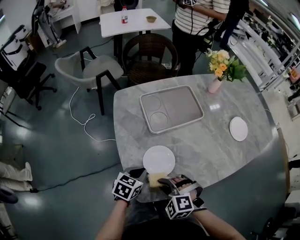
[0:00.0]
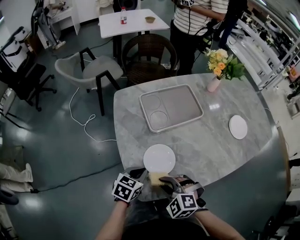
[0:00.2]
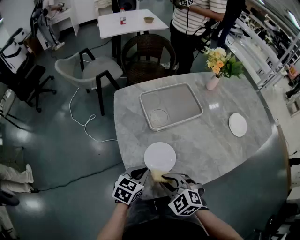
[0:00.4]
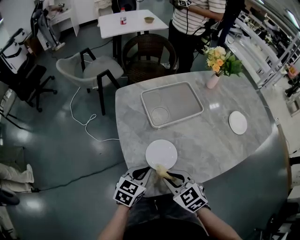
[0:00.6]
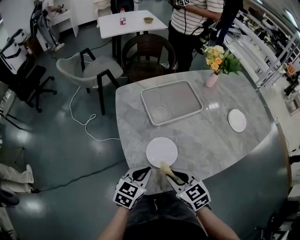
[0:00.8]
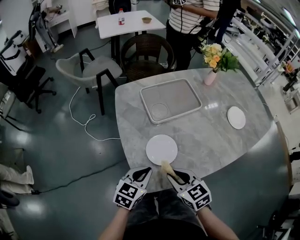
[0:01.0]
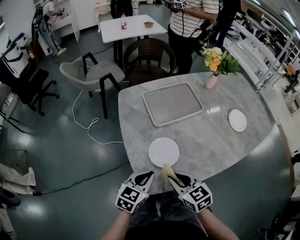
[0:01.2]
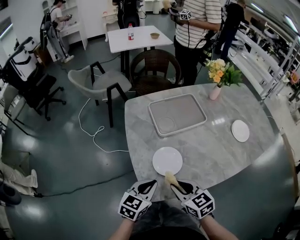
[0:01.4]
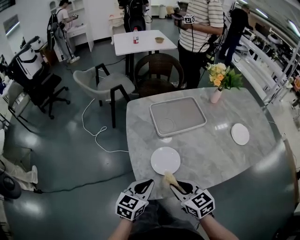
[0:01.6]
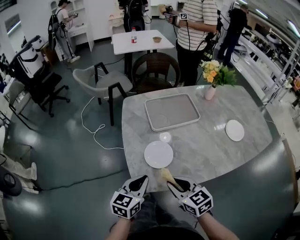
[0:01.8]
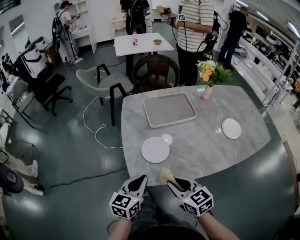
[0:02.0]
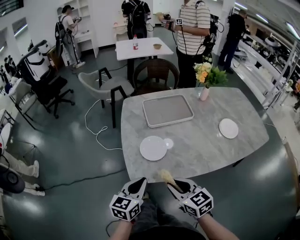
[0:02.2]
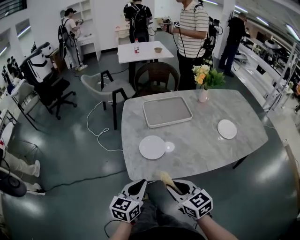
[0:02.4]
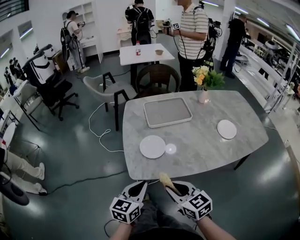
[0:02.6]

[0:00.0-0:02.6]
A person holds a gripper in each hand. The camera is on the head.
0:00.0 to 0:01.2: The left gripper heads upward and backward, covering some 10 cm, while the right gripper changes place by roughly 5 cm, and rotates around the line of its fingers by about 60 degrees, clockwise from behind.
0:01.2 to 0:02.6: The right gripper goes roughly 15 cm backward, to the right and upward; the left gripper heads backward and upward, covering some 15 cm, and rotates roughly 20 degrees.

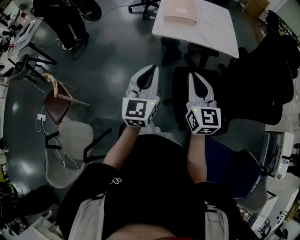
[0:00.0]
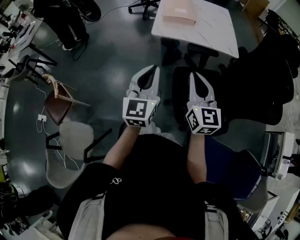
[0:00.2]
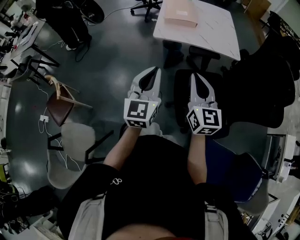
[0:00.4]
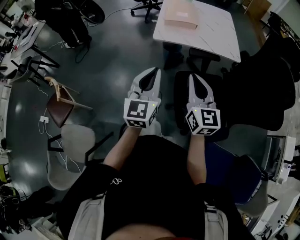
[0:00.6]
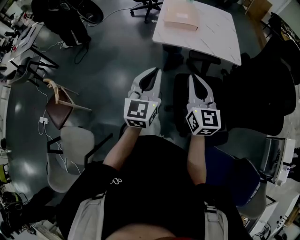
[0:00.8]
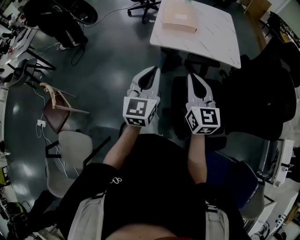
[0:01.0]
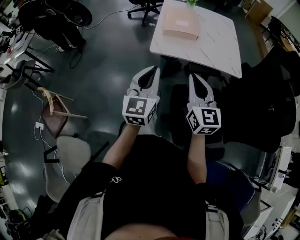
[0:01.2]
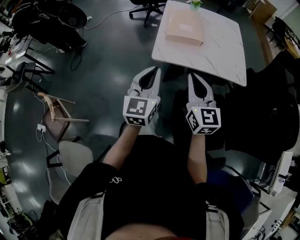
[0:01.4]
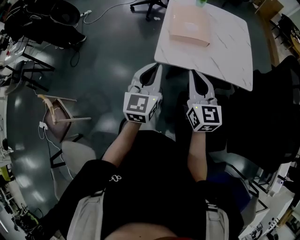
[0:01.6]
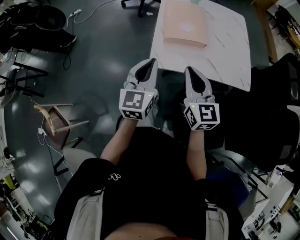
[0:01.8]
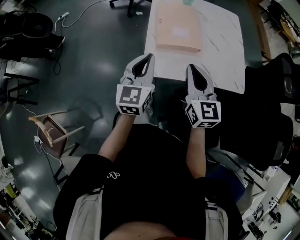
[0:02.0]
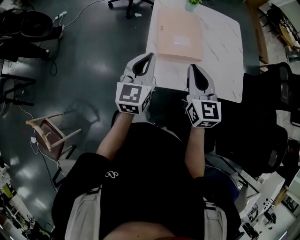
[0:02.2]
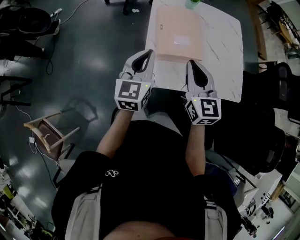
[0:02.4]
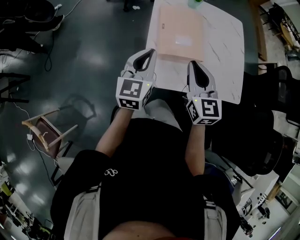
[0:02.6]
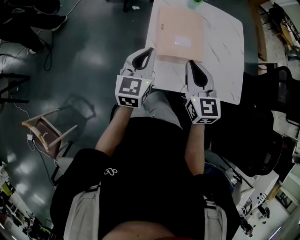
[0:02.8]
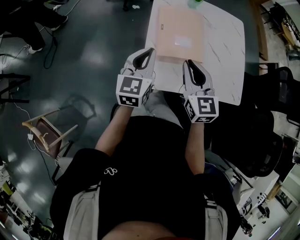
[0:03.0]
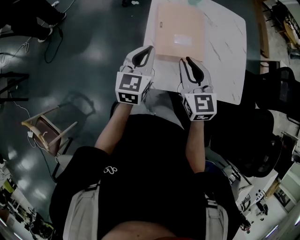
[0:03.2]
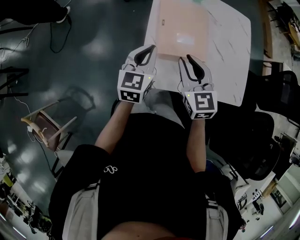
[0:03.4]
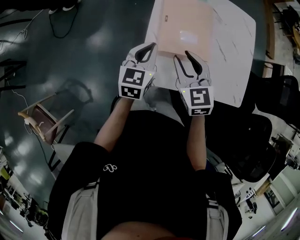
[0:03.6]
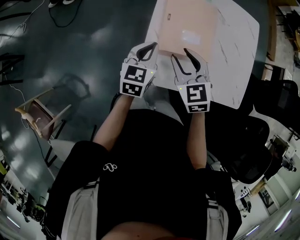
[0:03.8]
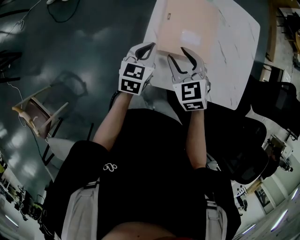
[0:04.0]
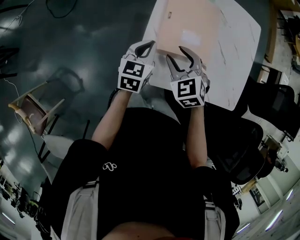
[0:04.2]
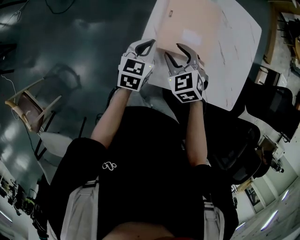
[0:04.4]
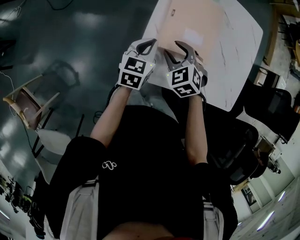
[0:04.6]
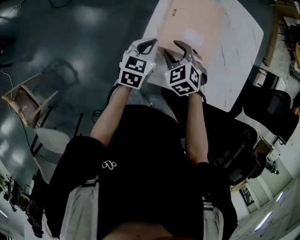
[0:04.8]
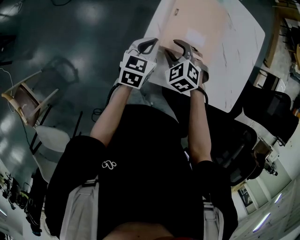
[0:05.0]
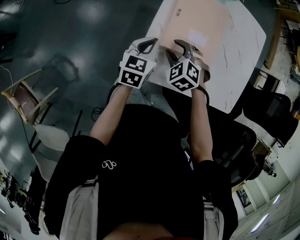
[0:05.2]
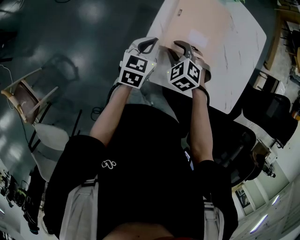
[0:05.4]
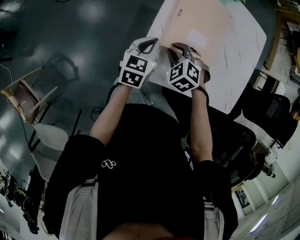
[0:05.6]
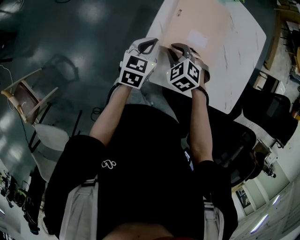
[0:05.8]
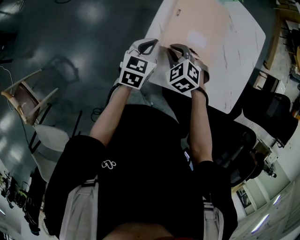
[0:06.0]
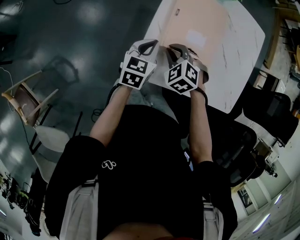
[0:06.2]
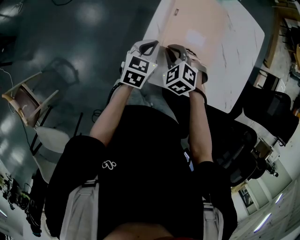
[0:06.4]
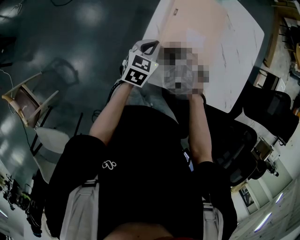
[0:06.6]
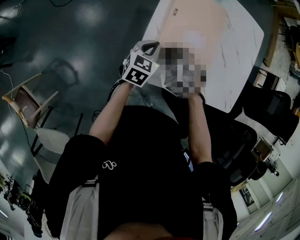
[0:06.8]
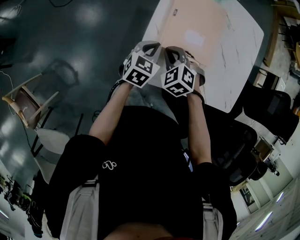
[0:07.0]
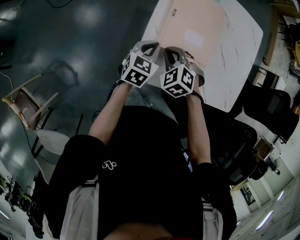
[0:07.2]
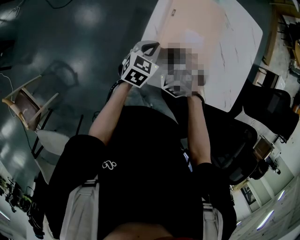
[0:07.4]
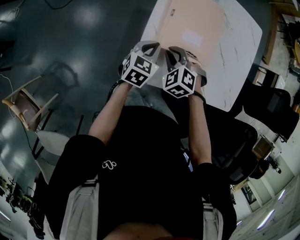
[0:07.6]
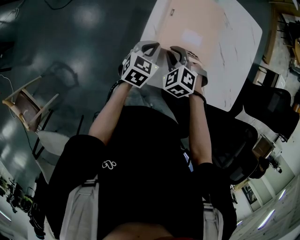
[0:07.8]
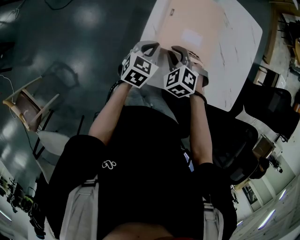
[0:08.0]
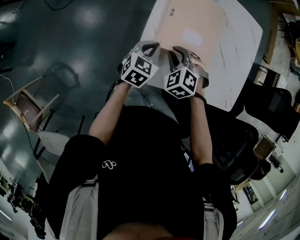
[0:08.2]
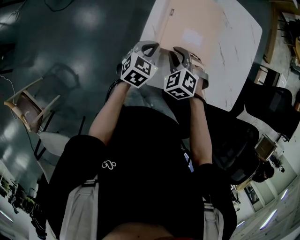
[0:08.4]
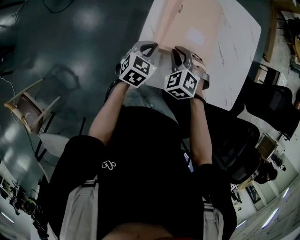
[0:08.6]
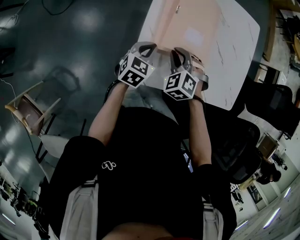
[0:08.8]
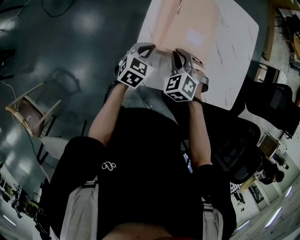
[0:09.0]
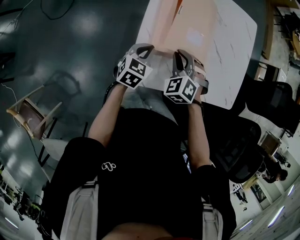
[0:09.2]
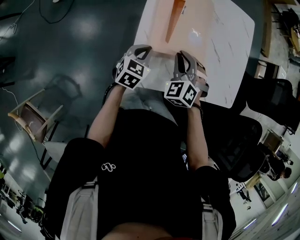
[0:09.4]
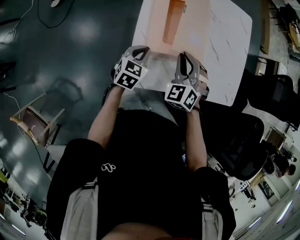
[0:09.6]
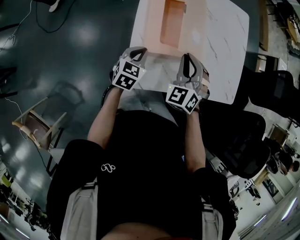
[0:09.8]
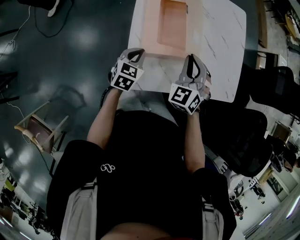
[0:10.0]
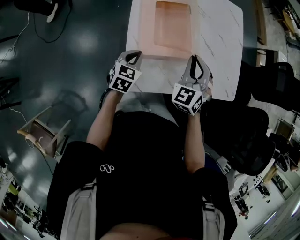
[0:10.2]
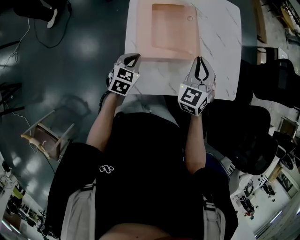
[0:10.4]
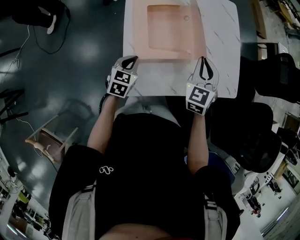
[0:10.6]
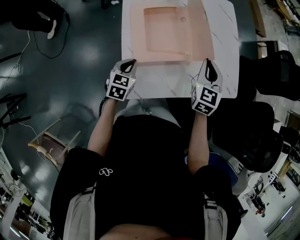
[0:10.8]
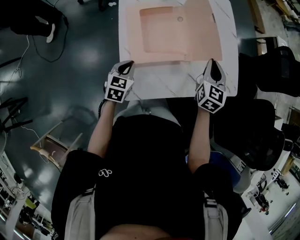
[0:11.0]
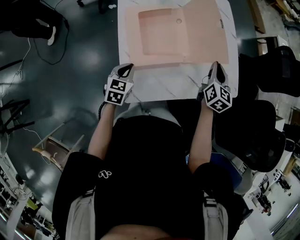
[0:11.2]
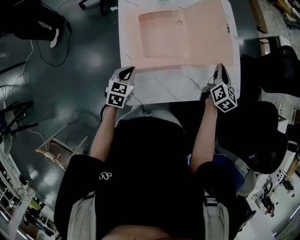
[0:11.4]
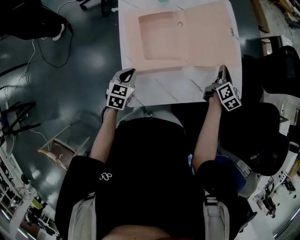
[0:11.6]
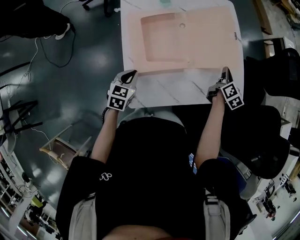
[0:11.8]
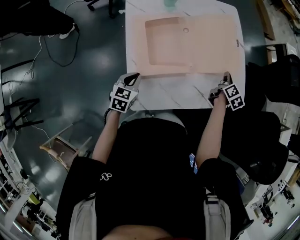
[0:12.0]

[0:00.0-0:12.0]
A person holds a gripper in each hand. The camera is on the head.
0:00.0 to 0:01.6: The grippers both shift forward by roughly 30 cm.
0:01.6 to 0:03.0: Both grippers travel together forward, about 25 cm.
0:03.0 to 0:04.4: Both grippers move downward, roughly 15 cm. The right gripper tilts its fingers roughly 30 degrees downward, and opens.
0:04.4 to 0:06.0: The right gripper moves downward, some 5 cm, turns by some 20 degrees, and closes its fingers.
0:06.0 to 0:09.0: The grippers make only small movements.
0:09.0 to 0:10.4: The right gripper goes roughly 15 cm to the right and upward, and rotates some 50 degrees.
0:10.4 to 0:12.0: The right gripper heads to the right, downward and forward, covering about 30 cm, and twists roughly 80 degrees clockwise, seen from behind.

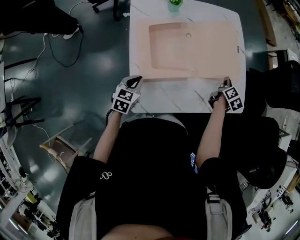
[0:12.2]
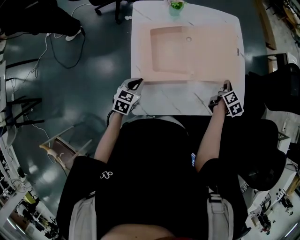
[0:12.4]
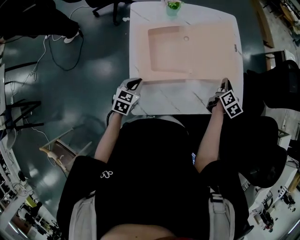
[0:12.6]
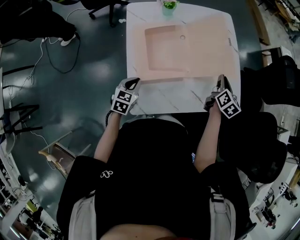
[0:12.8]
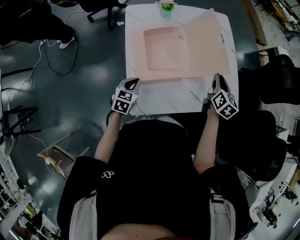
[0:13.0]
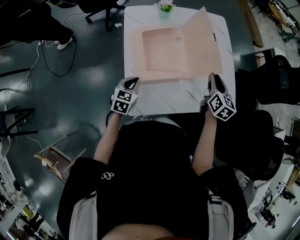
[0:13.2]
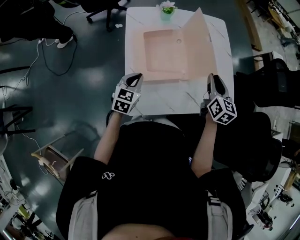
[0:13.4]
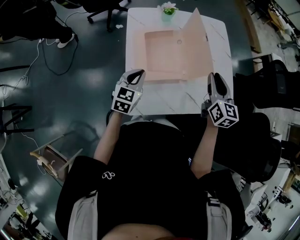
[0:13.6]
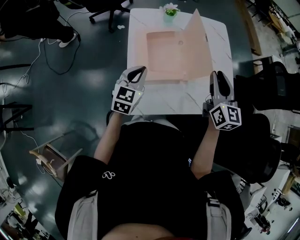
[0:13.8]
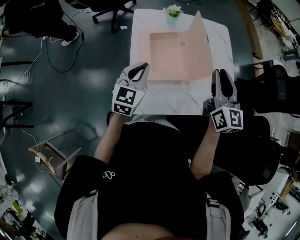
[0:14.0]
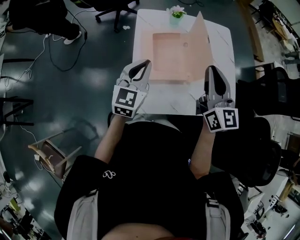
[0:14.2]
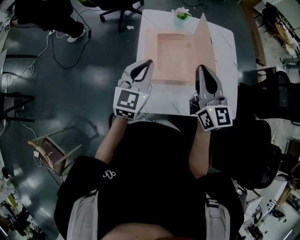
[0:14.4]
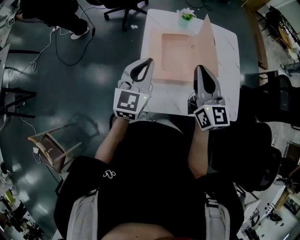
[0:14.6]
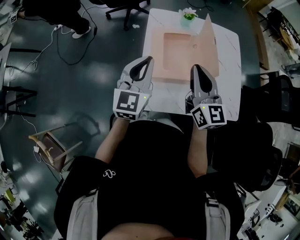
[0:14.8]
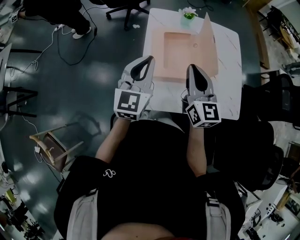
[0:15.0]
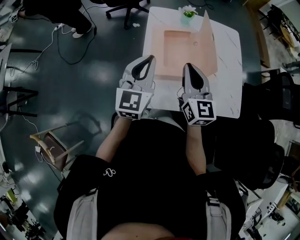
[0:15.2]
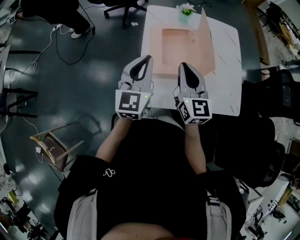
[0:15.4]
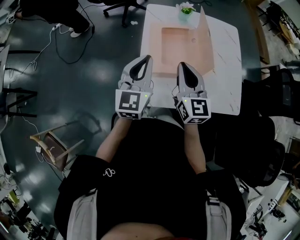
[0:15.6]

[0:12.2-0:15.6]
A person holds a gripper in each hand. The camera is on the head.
0:12.2 to 0:13.8: The right gripper shifts approximately 30 cm upward and to the left, and turns by roughly 50 degrees. The left gripper travels upward by approximately 15 cm, and changes its angle by approximately 20 degrees.
0:13.8 to 0:15.6: The right gripper moves to the left, about 20 cm, and closes its fingers. The left gripper is displaced upward by about 10 cm, and rotates about 20 degrees.

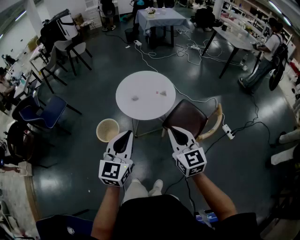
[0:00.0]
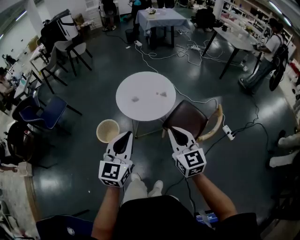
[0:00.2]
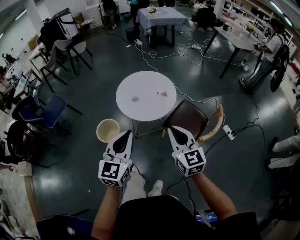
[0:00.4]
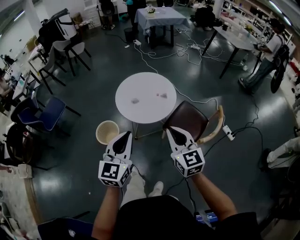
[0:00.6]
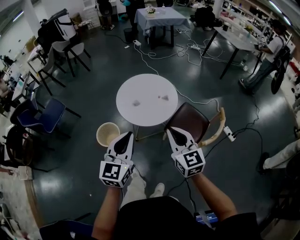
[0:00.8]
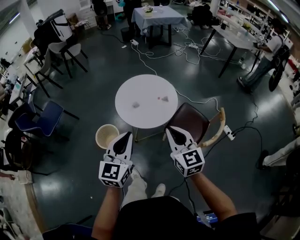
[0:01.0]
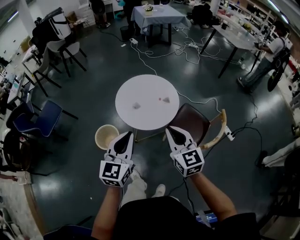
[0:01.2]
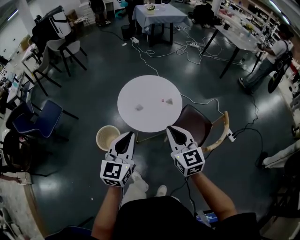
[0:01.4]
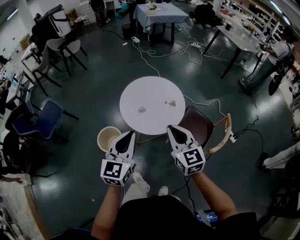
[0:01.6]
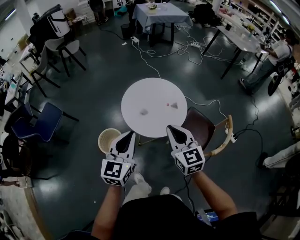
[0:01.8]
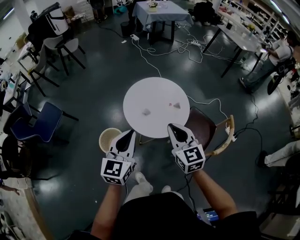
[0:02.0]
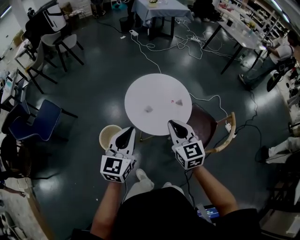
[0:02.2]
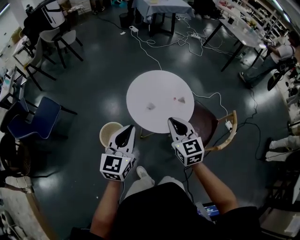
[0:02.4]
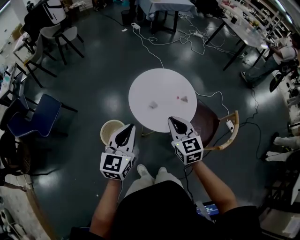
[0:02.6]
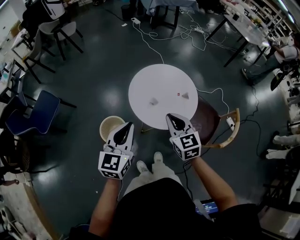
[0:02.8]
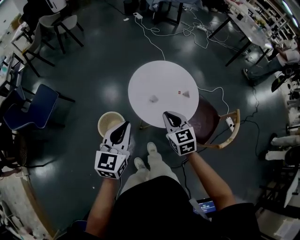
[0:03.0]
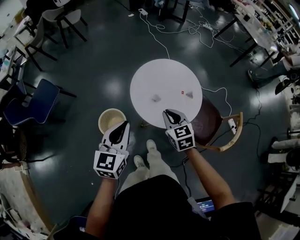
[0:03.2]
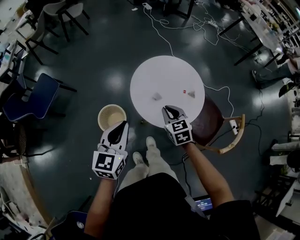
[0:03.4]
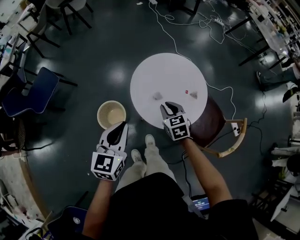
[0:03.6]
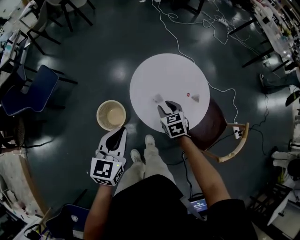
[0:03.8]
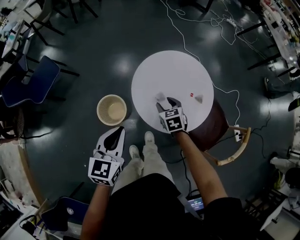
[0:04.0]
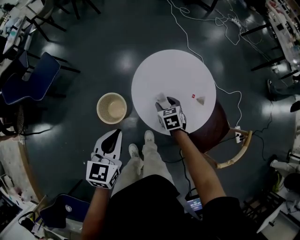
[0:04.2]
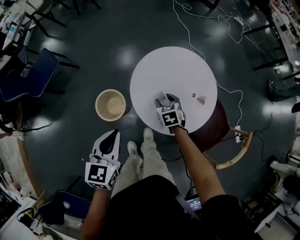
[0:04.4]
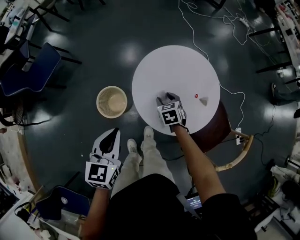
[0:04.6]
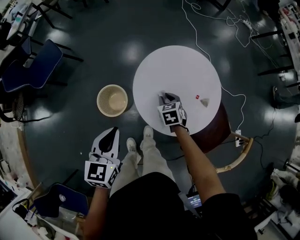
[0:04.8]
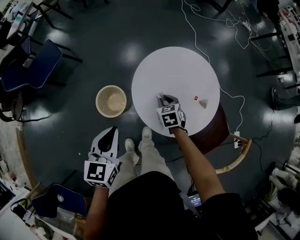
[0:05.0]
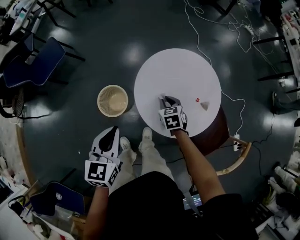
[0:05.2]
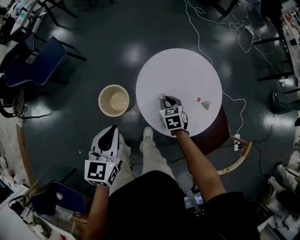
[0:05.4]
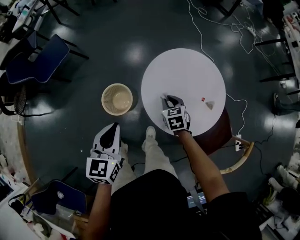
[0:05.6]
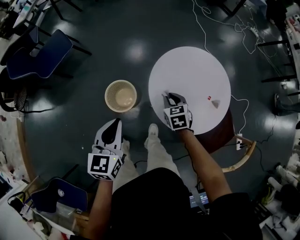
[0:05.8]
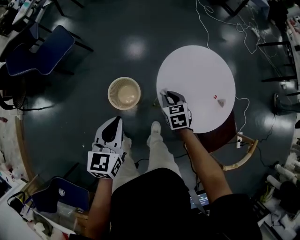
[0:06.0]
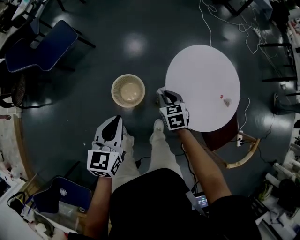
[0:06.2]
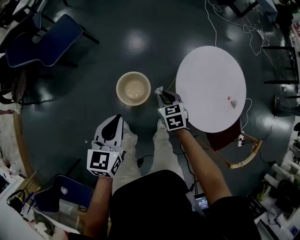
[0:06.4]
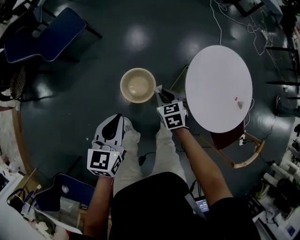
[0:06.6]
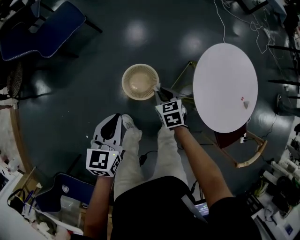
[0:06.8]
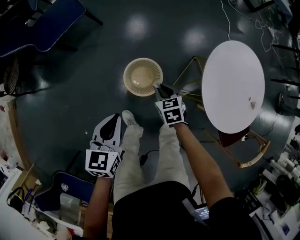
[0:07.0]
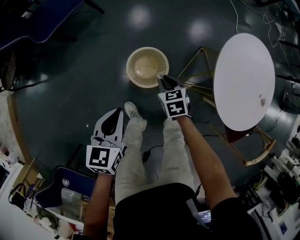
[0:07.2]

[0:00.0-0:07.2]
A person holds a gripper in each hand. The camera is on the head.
0:00.0 to 0:01.4: Both grippers move forward and to the left, some 15 cm.
0:01.4 to 0:02.8: The left gripper heads to the left and forward, covering about 20 cm. Meanwhile the right gripper travels to the left, forward and downward by approximately 25 cm.
0:02.8 to 0:04.4: The right gripper heads downward and forward, covering approximately 35 cm, swivels approximately 30 degrees, and opens; the left gripper is displaced downward and forward by approximately 15 cm, and swivels roughly 30 degrees.
0:04.4 to 0:05.8: Both grippers move to the left, approximately 10 cm. The right gripper closes.
0:05.8 to 0:07.2: Both grippers move to the left and downward, some 35 cm.
